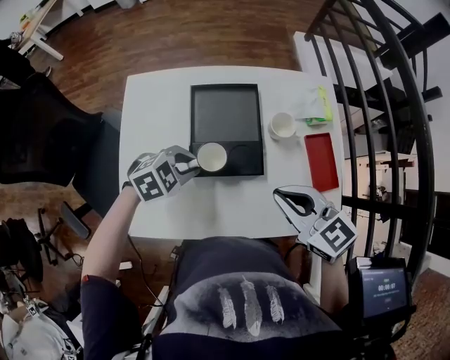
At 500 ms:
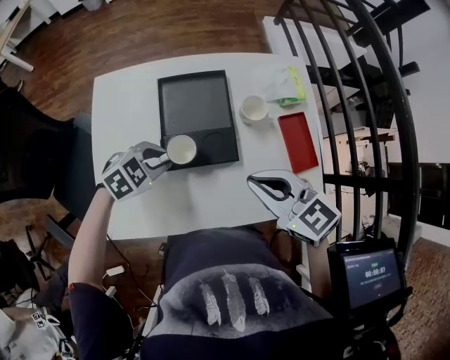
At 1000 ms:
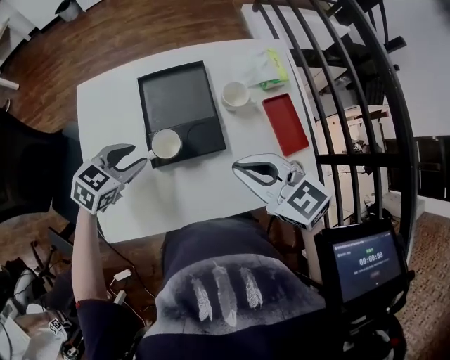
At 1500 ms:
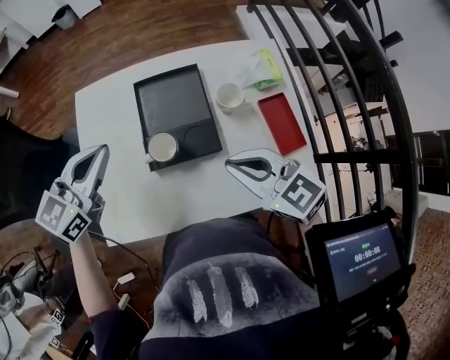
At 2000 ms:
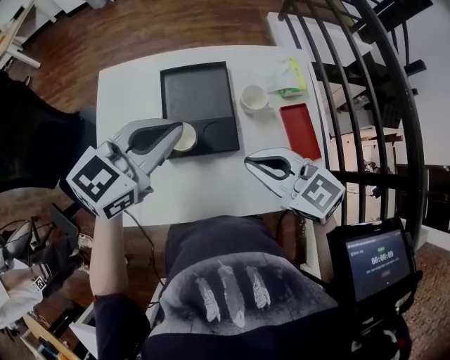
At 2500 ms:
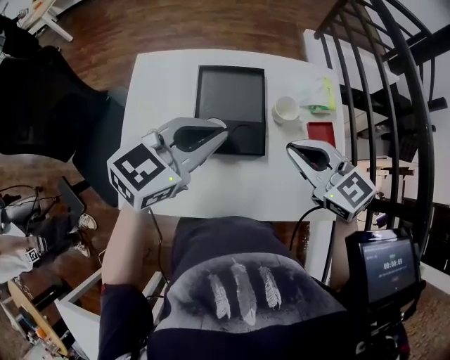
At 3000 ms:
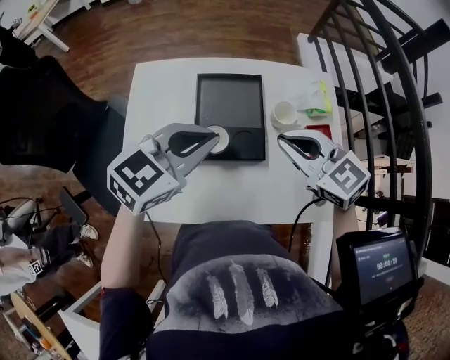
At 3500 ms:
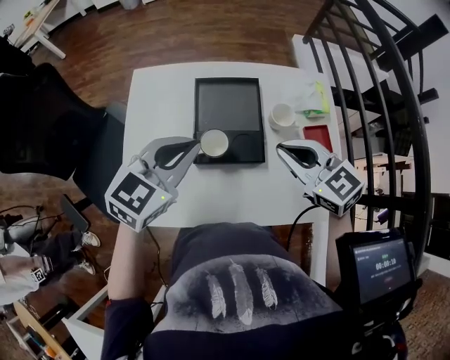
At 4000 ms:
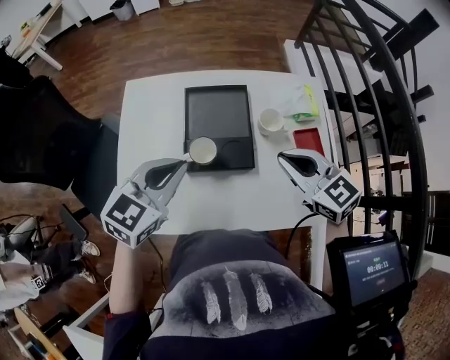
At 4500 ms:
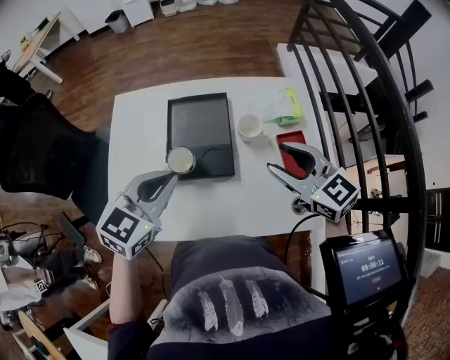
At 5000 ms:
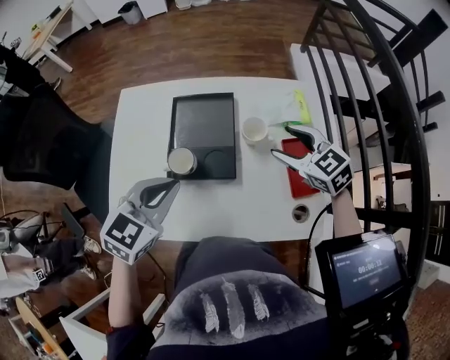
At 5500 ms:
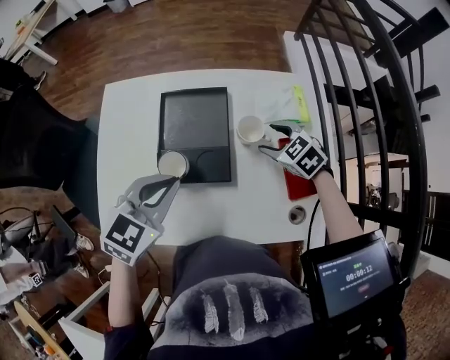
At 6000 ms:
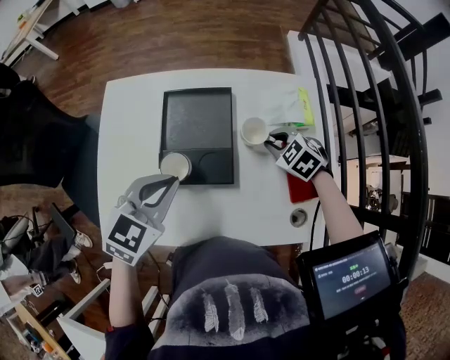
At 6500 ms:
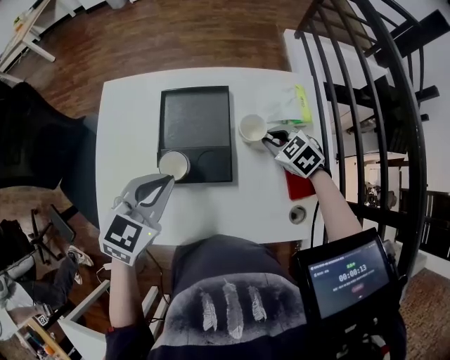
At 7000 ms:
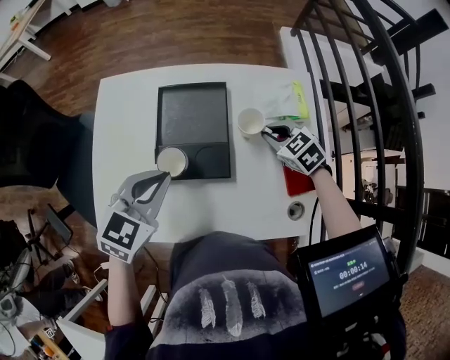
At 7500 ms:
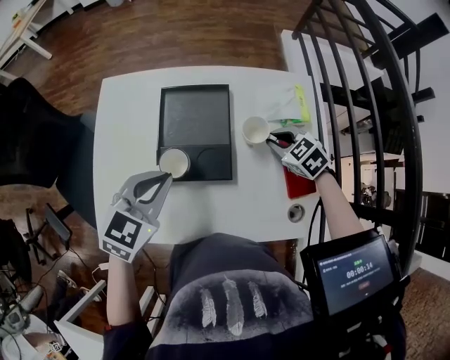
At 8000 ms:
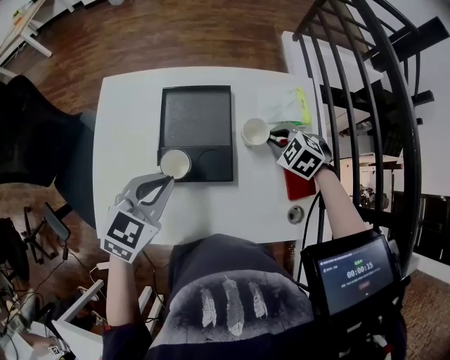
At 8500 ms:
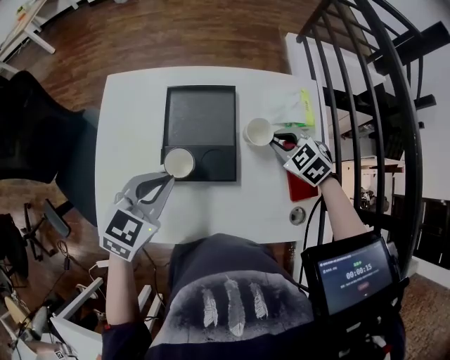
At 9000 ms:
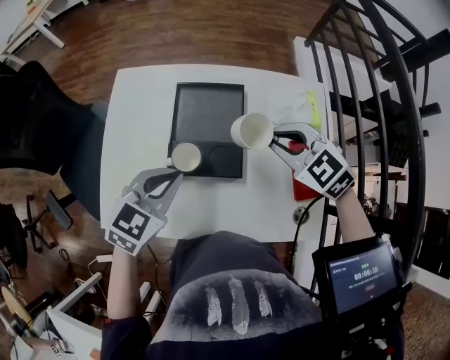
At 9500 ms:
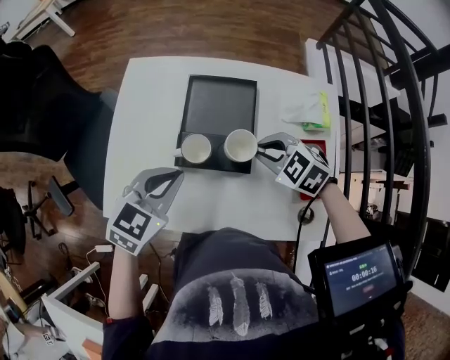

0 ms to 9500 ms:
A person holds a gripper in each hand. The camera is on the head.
0 ms to 2000 ms: The left gripper travels upward by approximately 20 cm, angles its fingers upward, by roughly 40 degrees, and opens, then closes once more.
2000 ms to 4000 ms: The right gripper travels to the right and forward by about 10 cm. The left gripper moves about 5 cm.
4000 ms to 5500 ms: The left gripper changes place by approximately 5 cm. Meanwhile the right gripper is displaced downward and forward by some 20 cm, swivels roughly 30 degrees, and opens up.
5500 ms to 7500 ms: The right gripper closes up.
7500 ms to 9500 ms: The right gripper heads to the left, upward and backward, covering about 15 cm, and rotates about 20 degrees.

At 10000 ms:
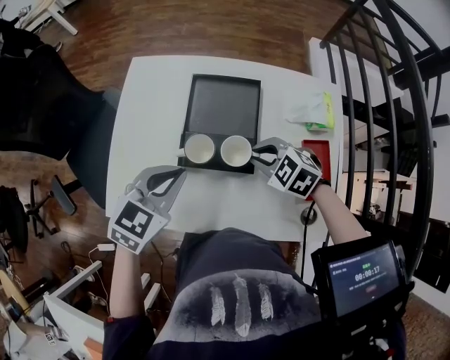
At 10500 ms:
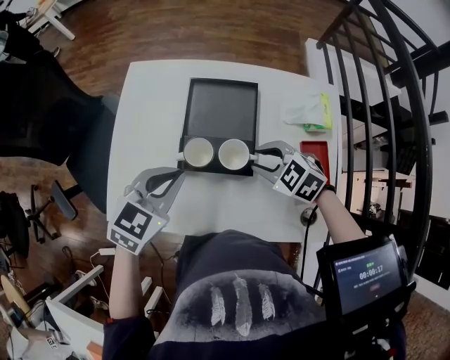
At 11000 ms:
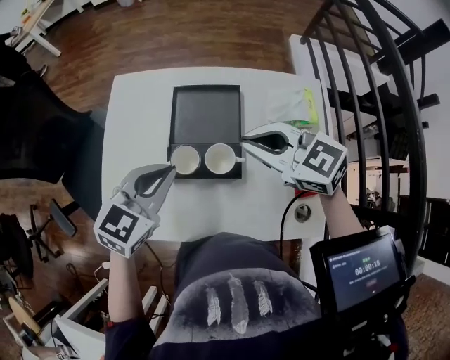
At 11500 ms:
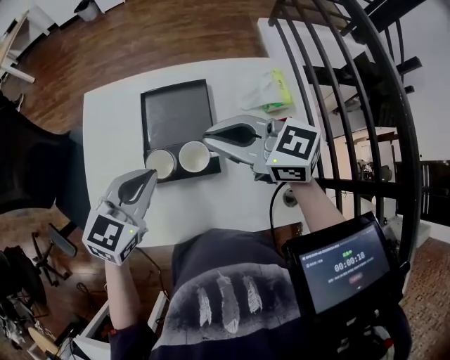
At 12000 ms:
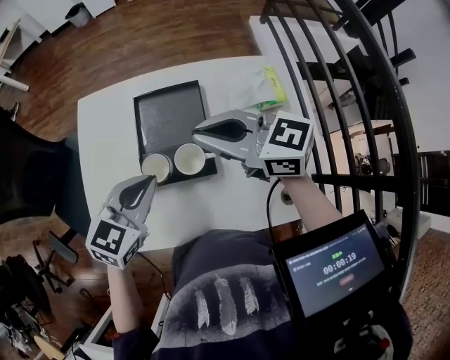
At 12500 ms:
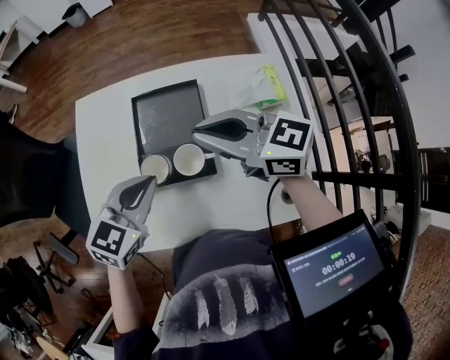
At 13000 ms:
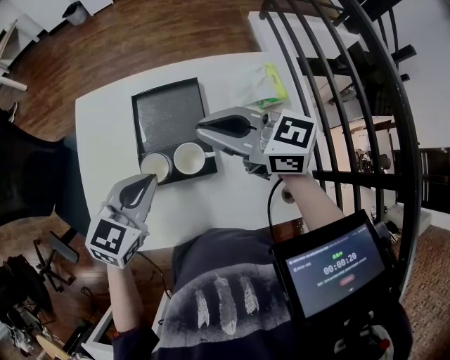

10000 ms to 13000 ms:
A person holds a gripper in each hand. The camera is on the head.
10000 ms to 11500 ms: The right gripper is displaced upward by about 15 cm, and points its fingers roughly 40 degrees further upward, while the left gripper ends up about 5 cm from where it was.
11500 ms to 13000 ms: The grippers stay close to where they were, moving slightly.

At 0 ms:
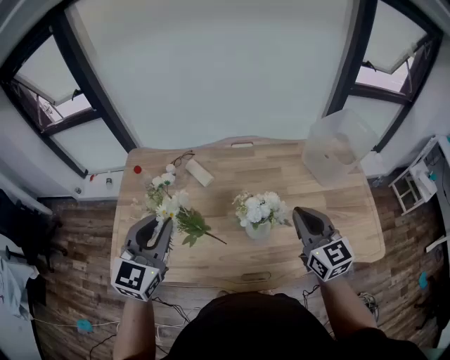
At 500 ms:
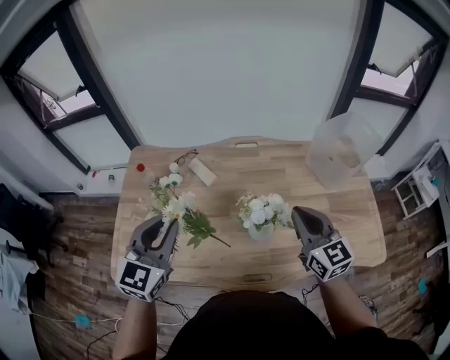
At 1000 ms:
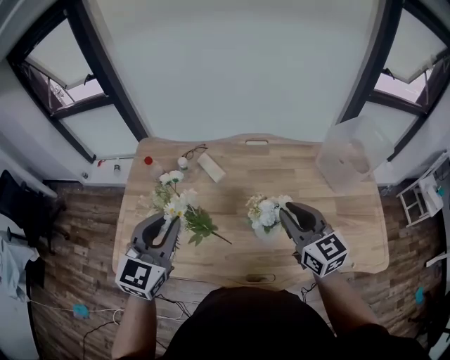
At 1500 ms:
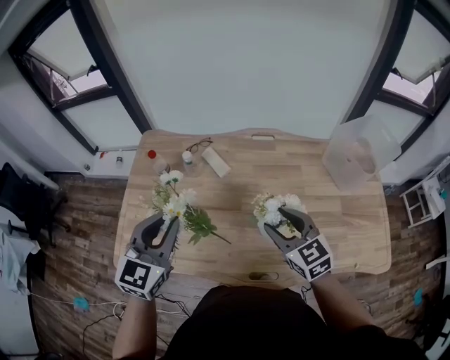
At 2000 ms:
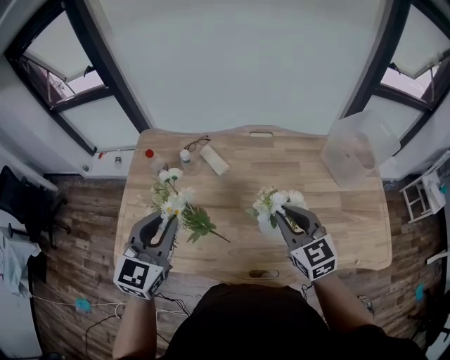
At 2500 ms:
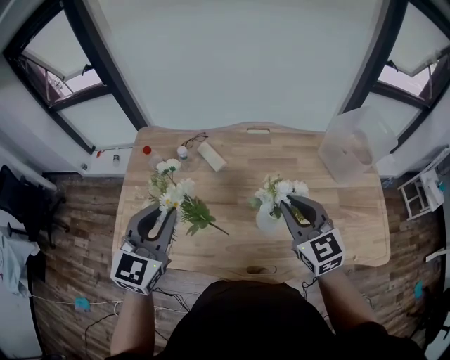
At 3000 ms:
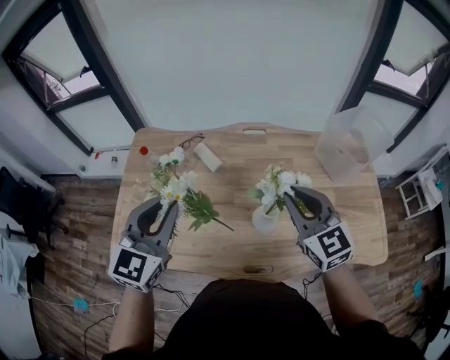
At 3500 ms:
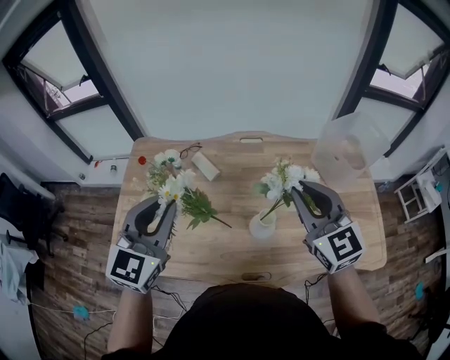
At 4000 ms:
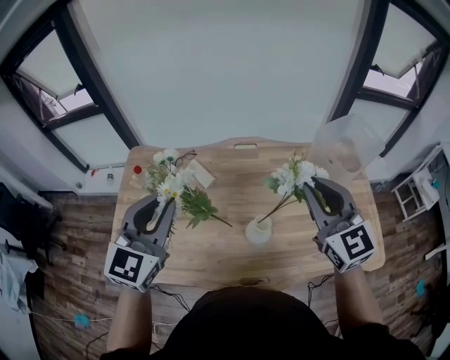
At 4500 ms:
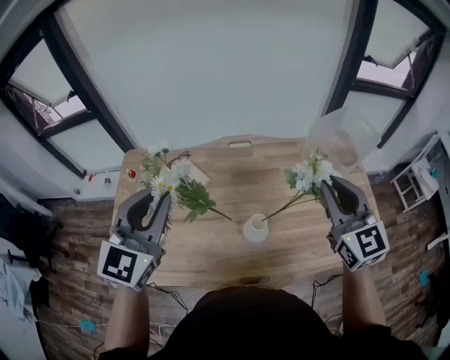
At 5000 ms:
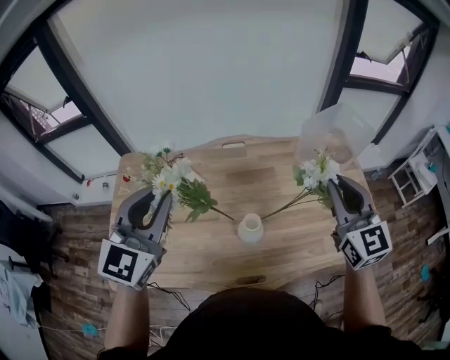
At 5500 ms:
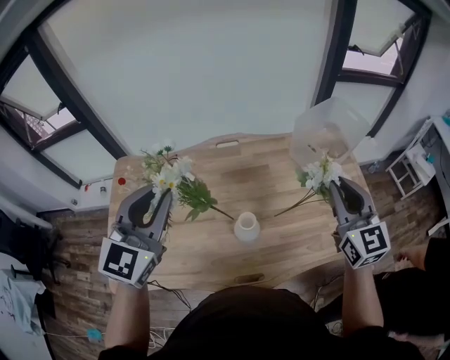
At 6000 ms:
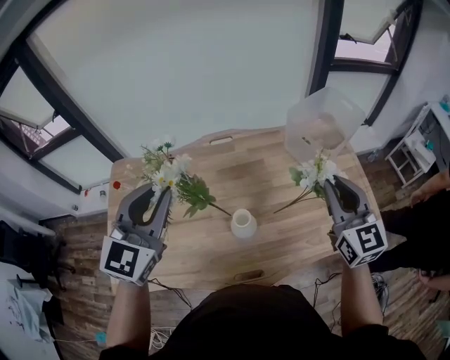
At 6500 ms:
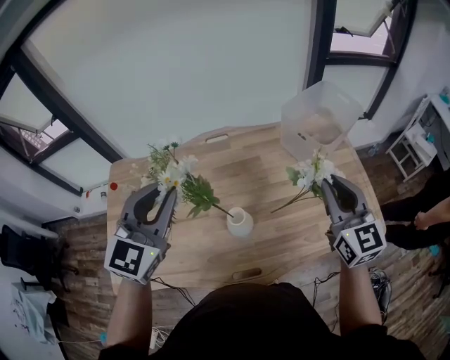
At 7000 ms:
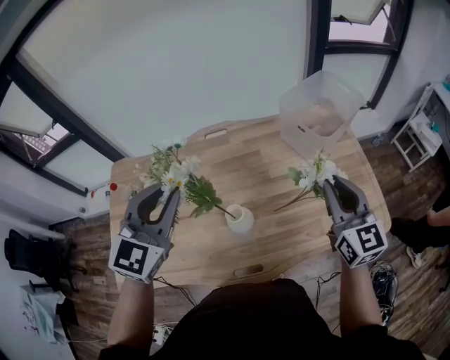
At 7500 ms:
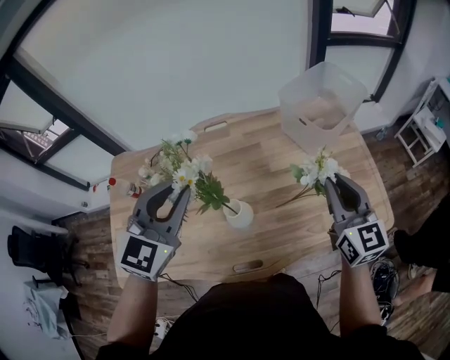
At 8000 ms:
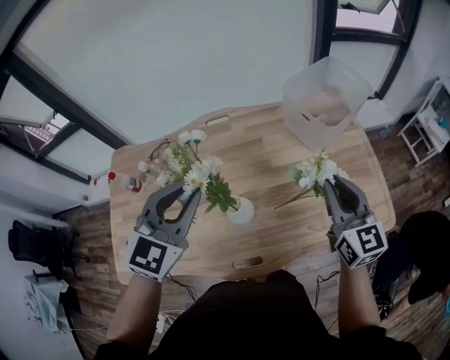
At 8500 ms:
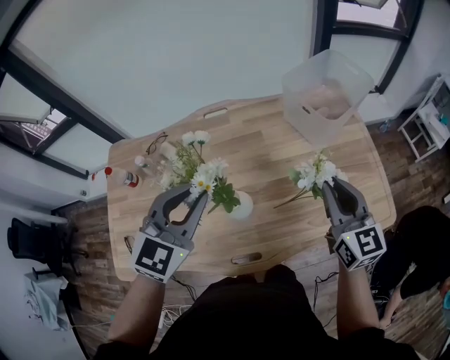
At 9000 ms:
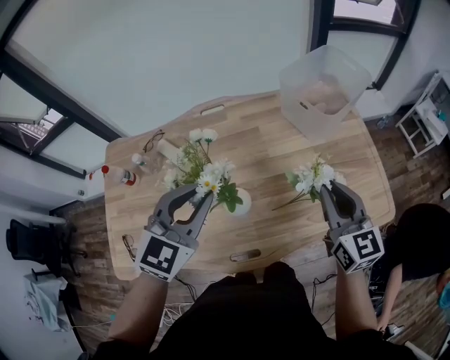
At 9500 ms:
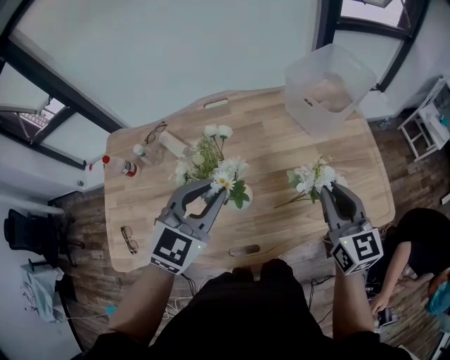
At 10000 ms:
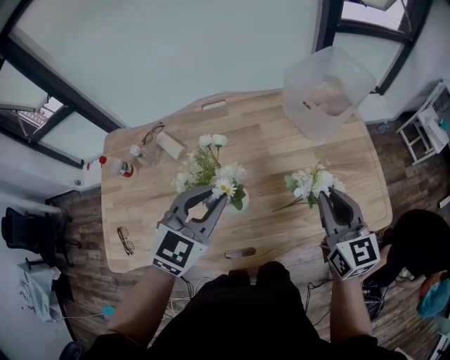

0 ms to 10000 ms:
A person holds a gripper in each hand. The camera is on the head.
0 ms to 2000 ms: The right gripper heads to the left, covering some 5 cm, and opens and closes again.
2000 ms to 4000 ms: The right gripper shifts about 15 cm upward and to the right. The left gripper is displaced upward by approximately 10 cm.
4000 ms to 6000 ms: The left gripper goes some 10 cm to the right. The right gripper travels to the right by roughly 15 cm.
6000 ms to 8000 ms: The left gripper shifts some 10 cm to the right and downward, while the right gripper goes about 5 cm downward.
8000 ms to 10000 ms: The left gripper goes roughly 10 cm downward; the right gripper ends up about 5 cm from where it was.

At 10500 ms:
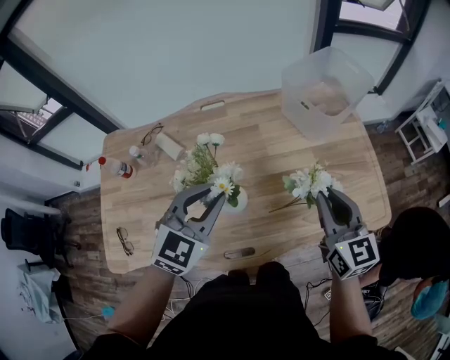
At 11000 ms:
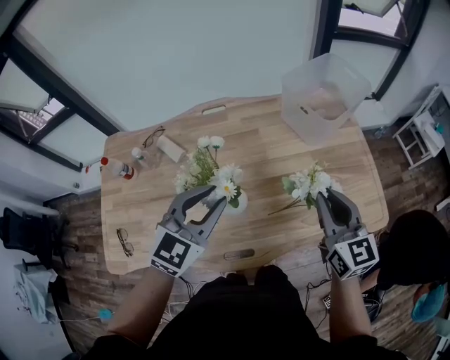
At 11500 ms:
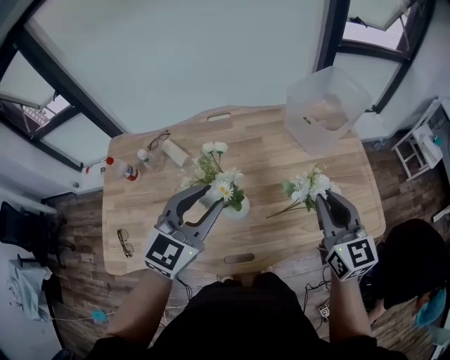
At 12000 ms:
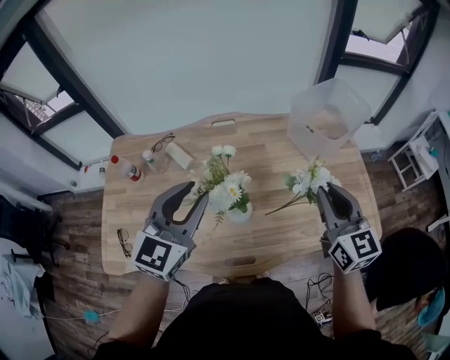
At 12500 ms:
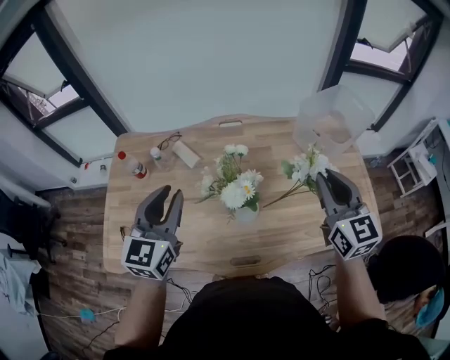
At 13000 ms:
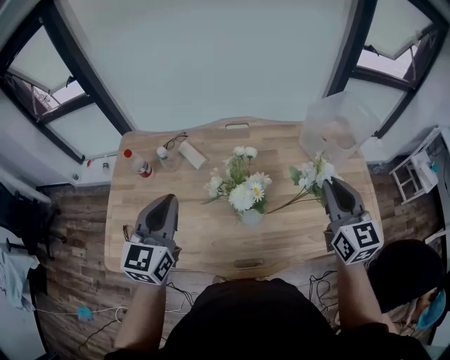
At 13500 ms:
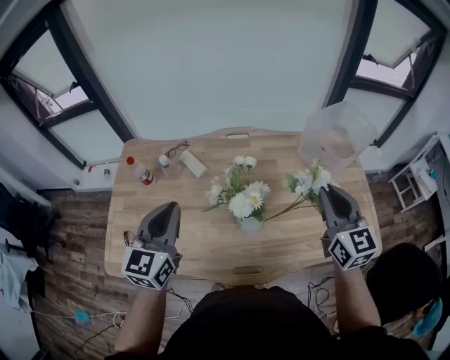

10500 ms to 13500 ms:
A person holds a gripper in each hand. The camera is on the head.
10500 ms to 12000 ms: The right gripper is displaced upward by some 5 cm, while the left gripper is displaced upward and to the left by approximately 10 cm, and swivels about 20 degrees.
12000 ms to 13500 ms: The right gripper changes place by about 5 cm. Meanwhile the left gripper goes approximately 15 cm to the left, and closes its fingers.
